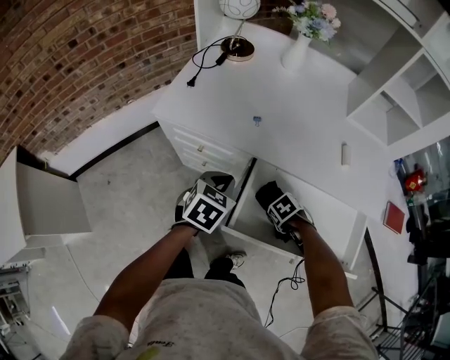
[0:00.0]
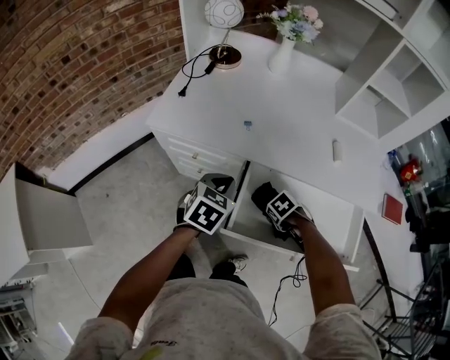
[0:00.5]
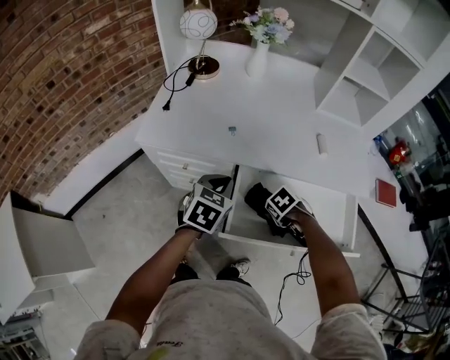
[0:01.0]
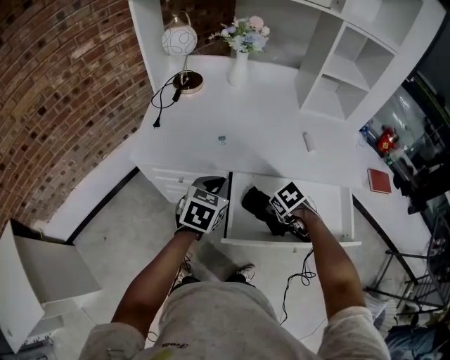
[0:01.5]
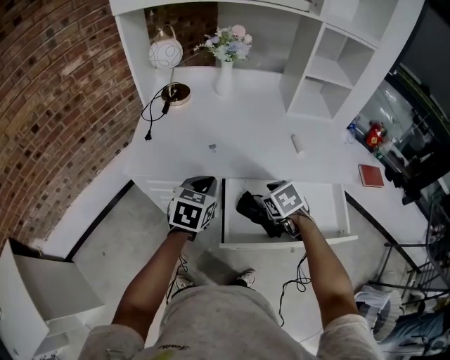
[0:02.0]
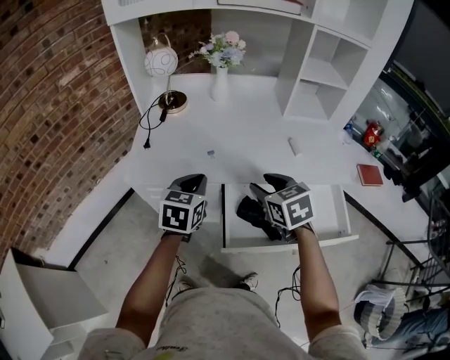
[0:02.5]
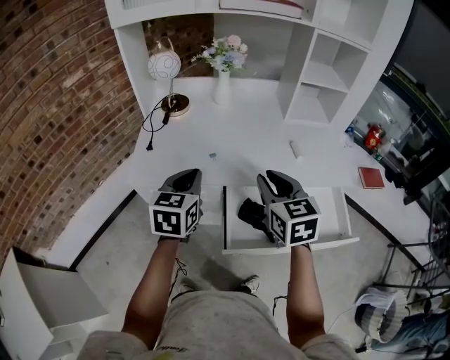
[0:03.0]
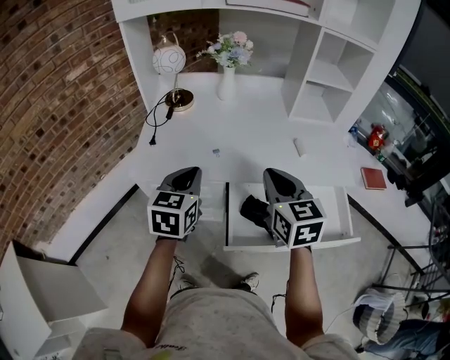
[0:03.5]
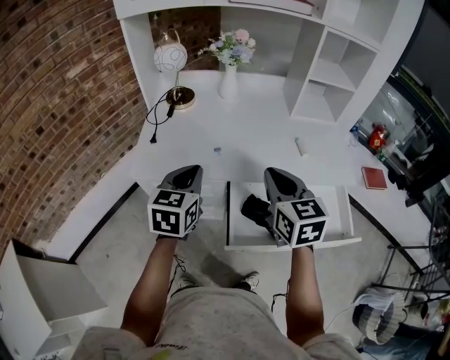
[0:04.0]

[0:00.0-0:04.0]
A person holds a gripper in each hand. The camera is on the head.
0:00.0 to 0:02.0: The right gripper is displaced upward by some 20 cm, and rotates about 40 degrees; the left gripper shifts approximately 5 cm upward.
0:02.0 to 0:04.0: The right gripper moves upward, approximately 20 cm, tips its fingers upward by about 40 degrees, and closes up; the left gripper moves upward and to the left, approximately 10 cm.

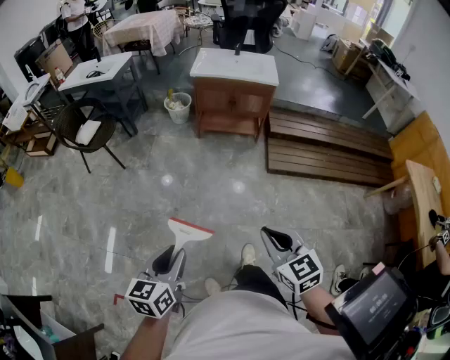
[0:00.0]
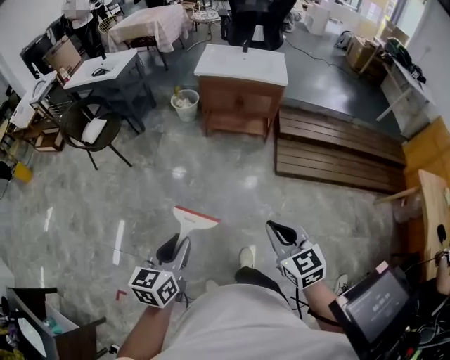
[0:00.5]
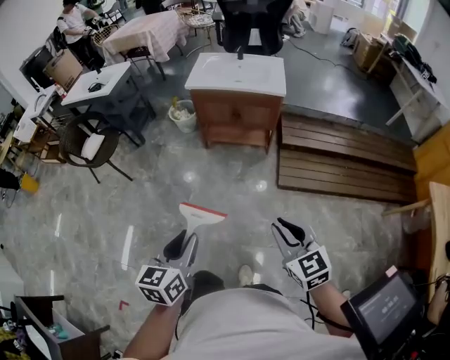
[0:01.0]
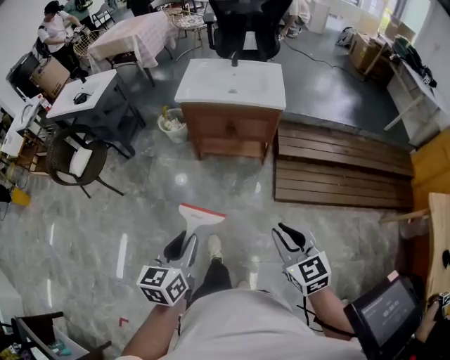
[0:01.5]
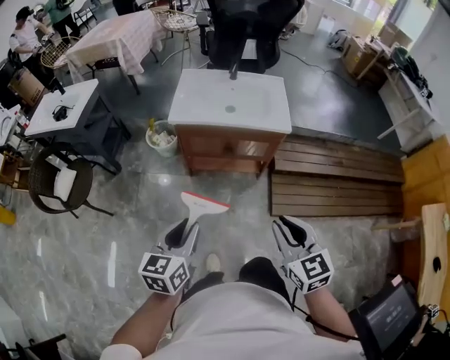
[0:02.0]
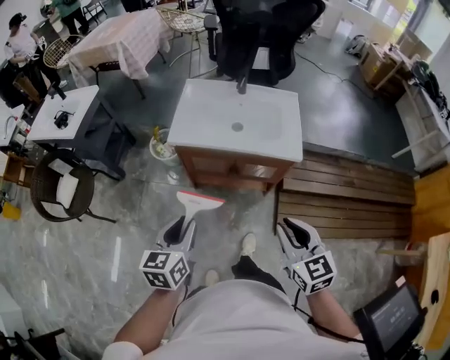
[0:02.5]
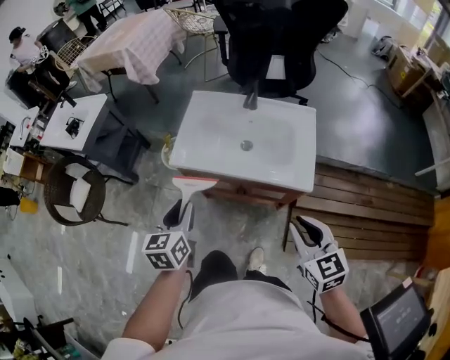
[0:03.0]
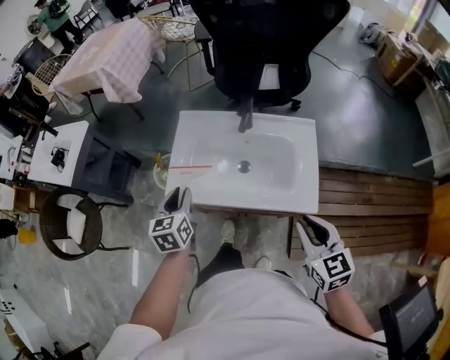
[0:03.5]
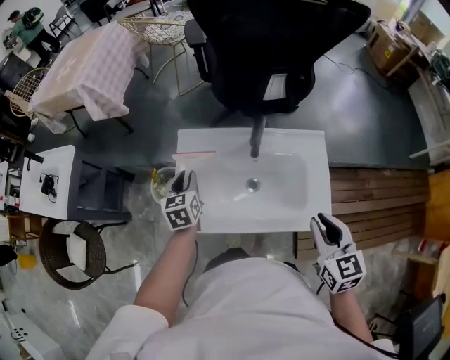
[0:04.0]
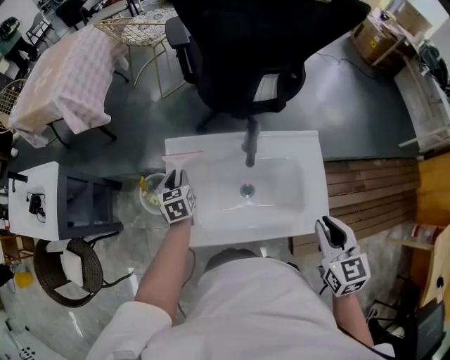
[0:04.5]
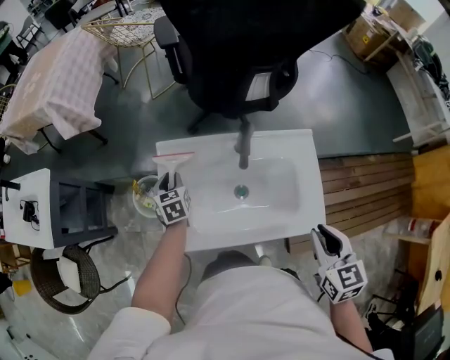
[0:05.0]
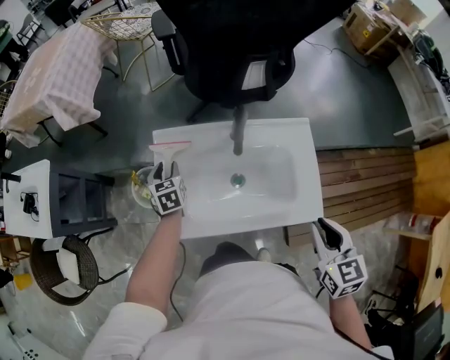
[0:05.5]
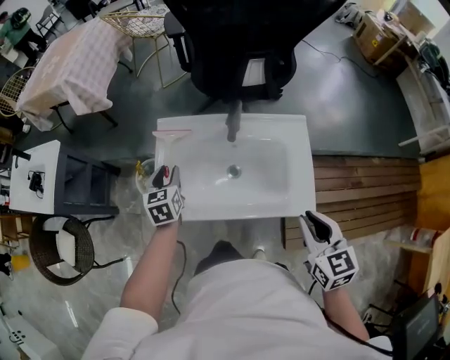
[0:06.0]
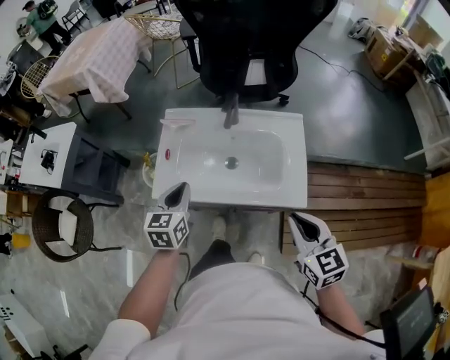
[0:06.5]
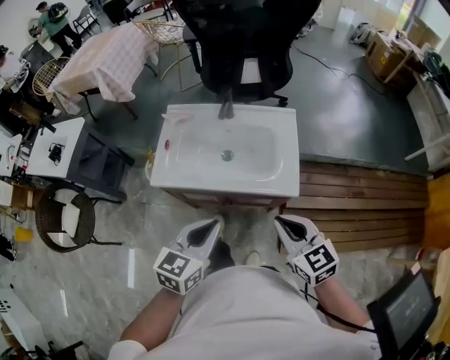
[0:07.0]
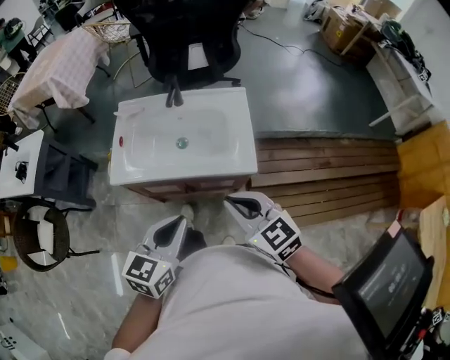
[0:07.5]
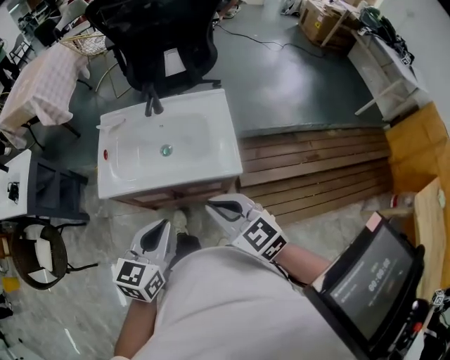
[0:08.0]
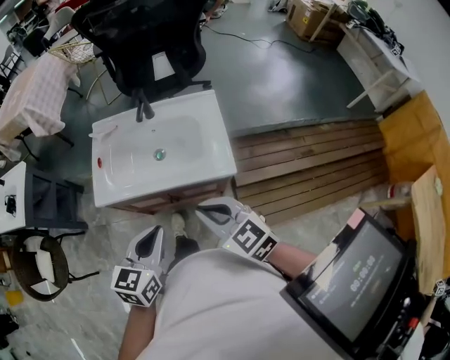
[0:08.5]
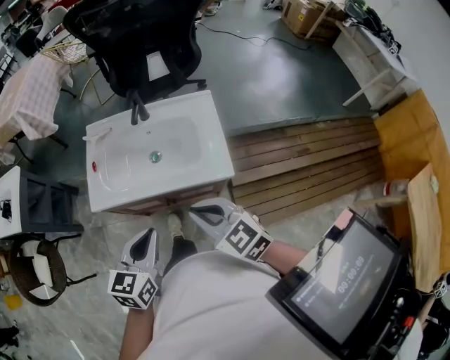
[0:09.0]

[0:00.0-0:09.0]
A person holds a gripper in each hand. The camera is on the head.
0:00.0 to 0:02.0: The pair of grippers is taken forward, about 70 cm.
0:02.0 to 0:04.5: The two grippers travel together, forward, approximately 70 cm. The left gripper swivels some 20 degrees. The right gripper changes its angle by about 20 degrees.
0:04.5 to 0:07.0: The right gripper goes roughly 25 cm backward, and swivels approximately 30 degrees; the left gripper moves backward, to the right and upward, roughly 60 cm, changes its angle by about 30 degrees, and closes.
0:07.0 to 0:09.0: The grippers move only a little.

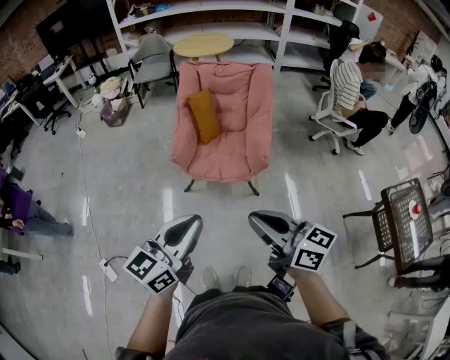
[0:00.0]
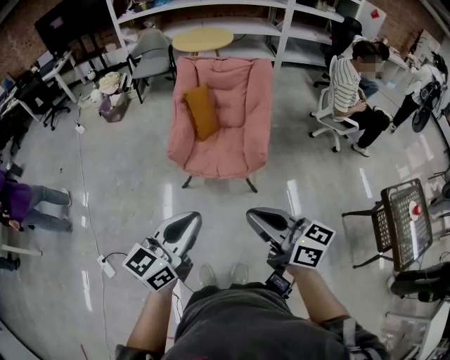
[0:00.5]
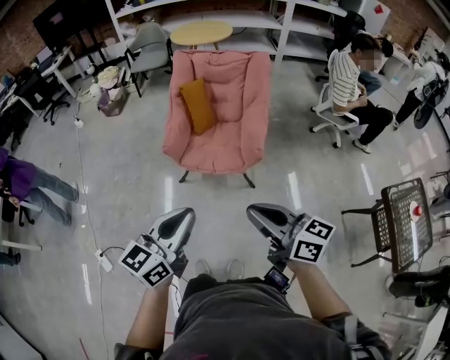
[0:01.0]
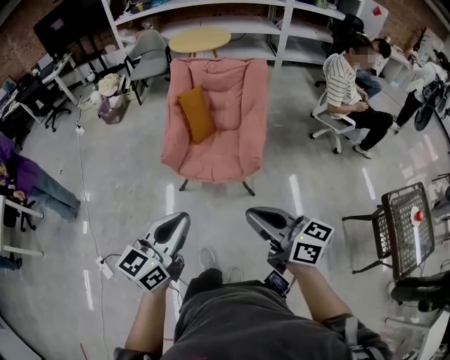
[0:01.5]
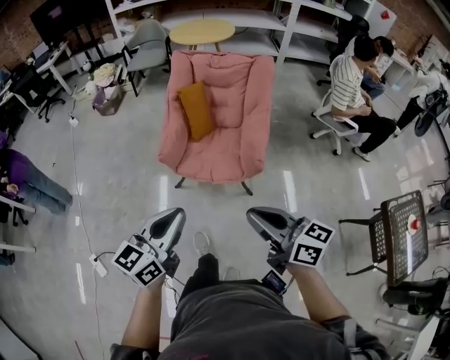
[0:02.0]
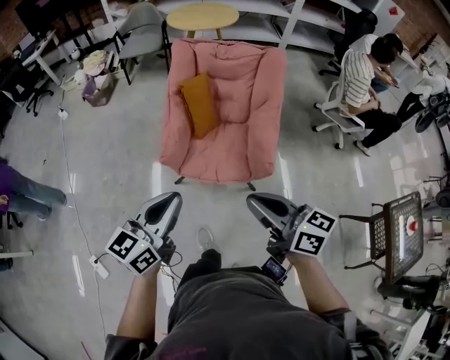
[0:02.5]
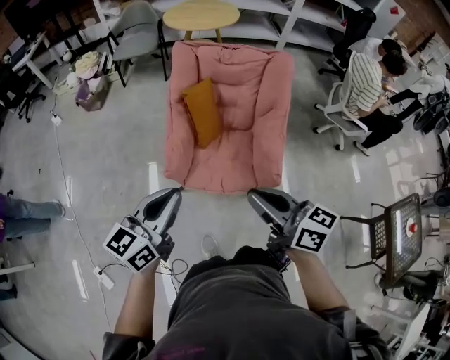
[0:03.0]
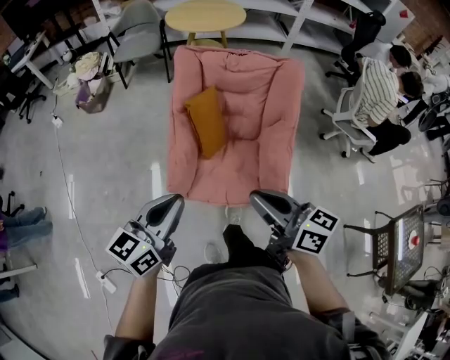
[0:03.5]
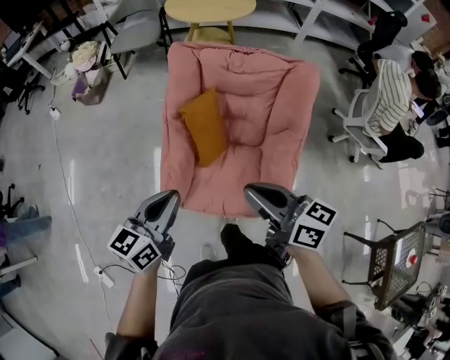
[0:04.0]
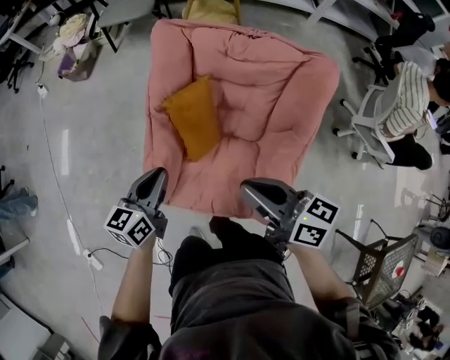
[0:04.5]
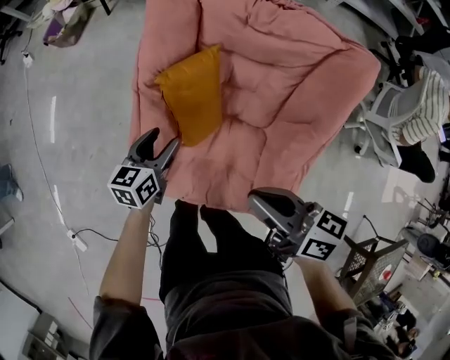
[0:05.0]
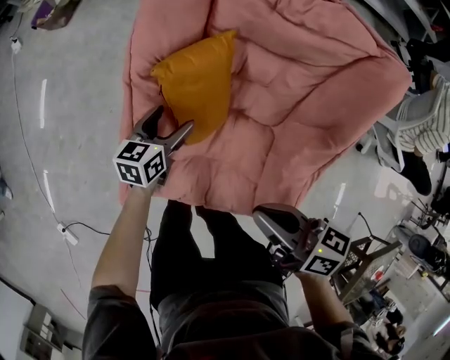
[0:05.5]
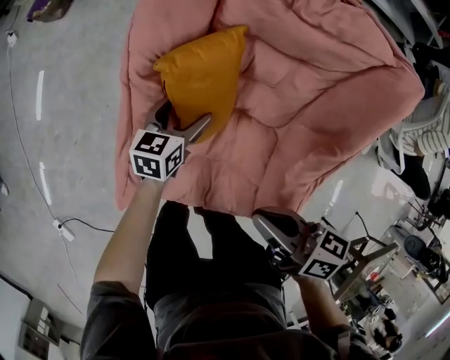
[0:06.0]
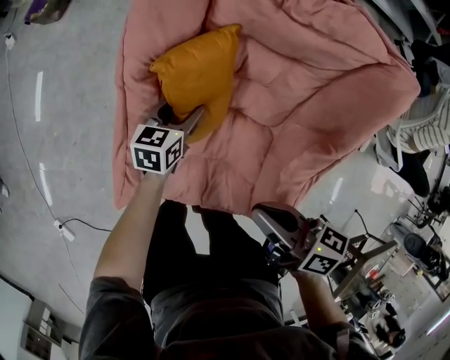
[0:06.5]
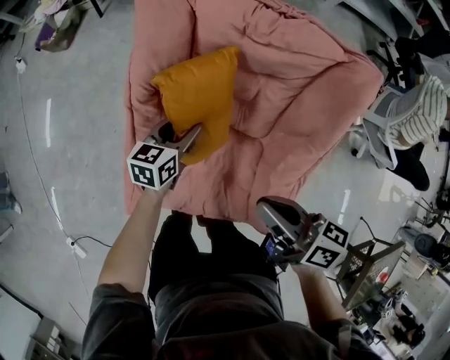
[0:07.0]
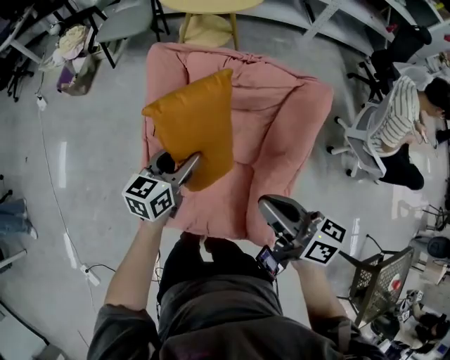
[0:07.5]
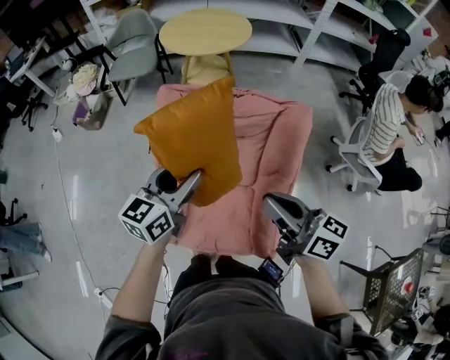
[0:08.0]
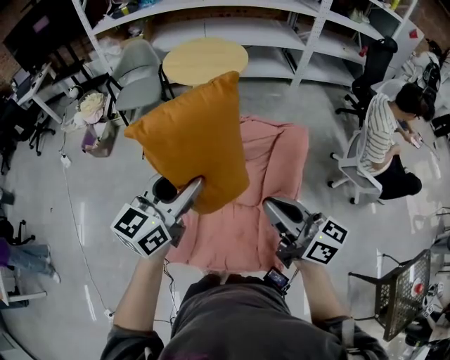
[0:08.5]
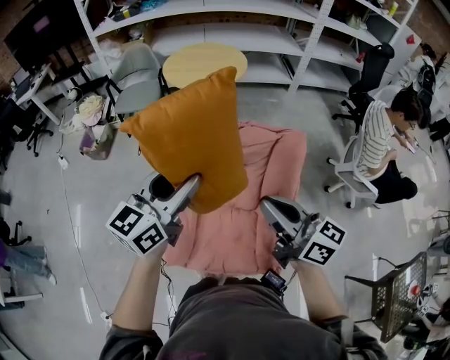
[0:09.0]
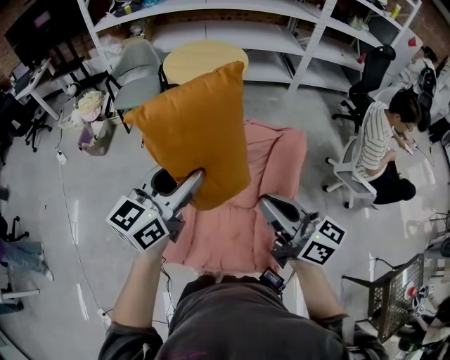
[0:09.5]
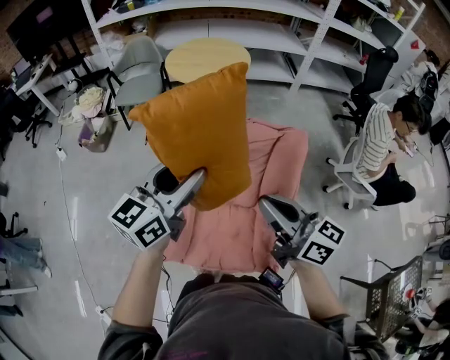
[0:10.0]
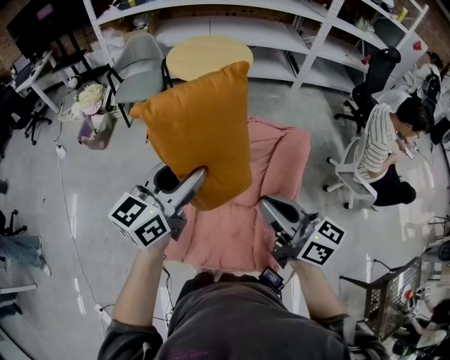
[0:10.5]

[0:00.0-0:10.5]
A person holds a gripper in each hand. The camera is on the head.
0:00.0 to 0:02.0: The right gripper moves forward and to the right, roughly 15 cm. The left gripper moves forward and downward, about 15 cm.
0:02.0 to 0:04.0: Both grippers are carried forward, about 50 cm.
0:04.0 to 0:06.5: The left gripper shifts approximately 50 cm downward and forward, changes its angle by some 20 degrees, and opens up. The right gripper goes about 30 cm downward and forward, and changes its angle by about 30 degrees.
0:06.5 to 0:08.5: The right gripper shifts about 35 cm upward, and changes its angle by roughly 40 degrees. Meanwhile the left gripper goes approximately 60 cm upward, and points its fingers some 30 degrees further upward.
0:08.5 to 0:10.5: The grippers make only small movements.

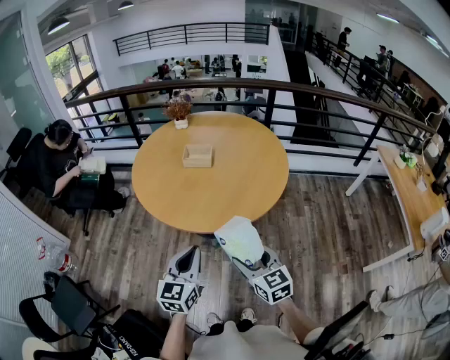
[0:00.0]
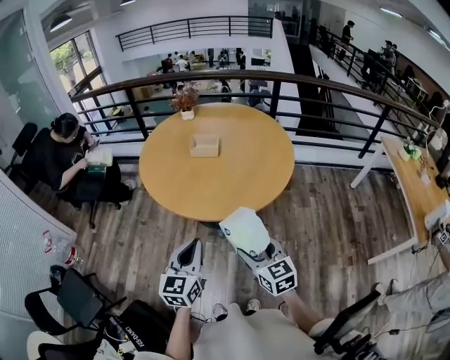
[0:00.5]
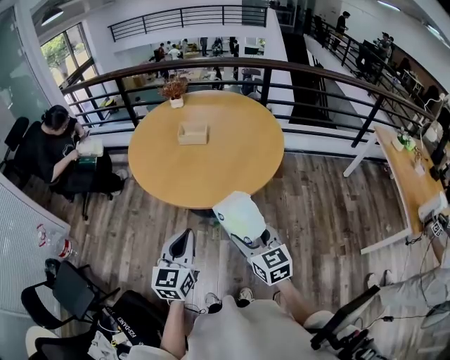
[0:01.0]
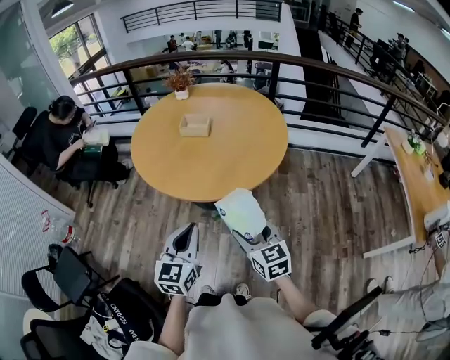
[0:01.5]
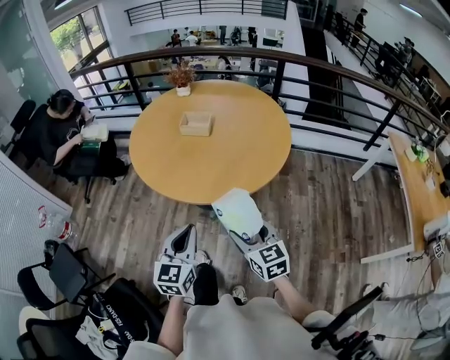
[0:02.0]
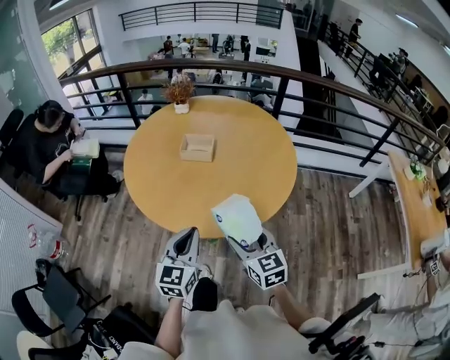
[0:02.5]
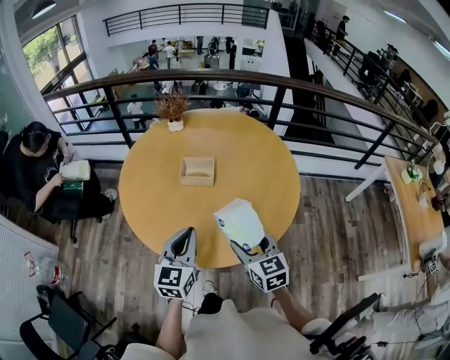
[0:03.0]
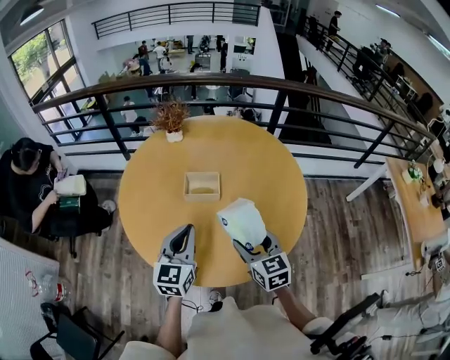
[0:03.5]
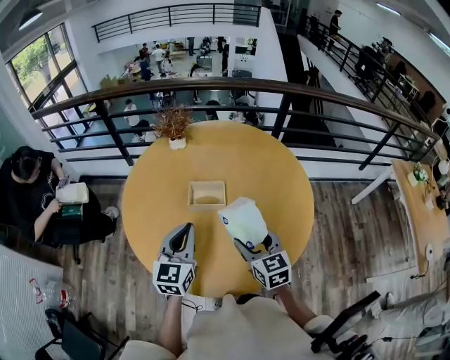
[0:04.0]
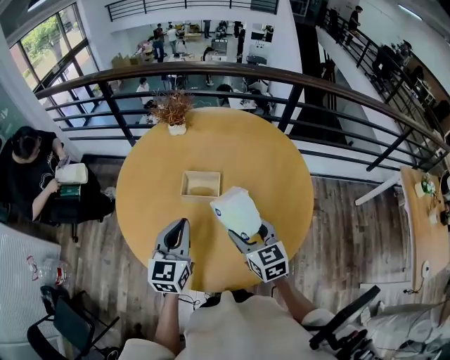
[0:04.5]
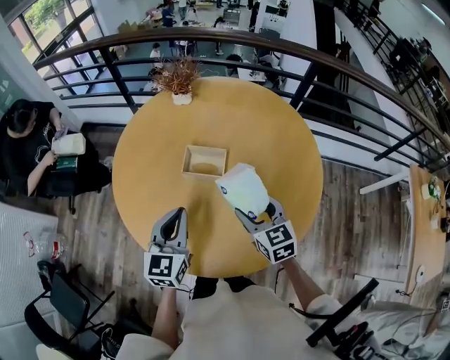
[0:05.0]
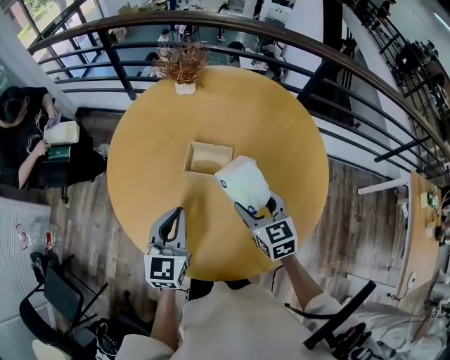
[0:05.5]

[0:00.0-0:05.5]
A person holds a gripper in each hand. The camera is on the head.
0:00.0 to 0:02.0: The grippers move only a little.
0:02.0 to 0:03.5: Both grippers move forward, roughly 25 cm.
0:03.5 to 0:05.5: The left gripper shifts by some 5 cm. The right gripper moves forward, some 10 cm.
